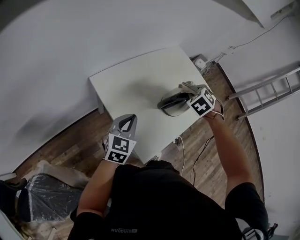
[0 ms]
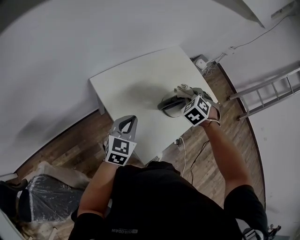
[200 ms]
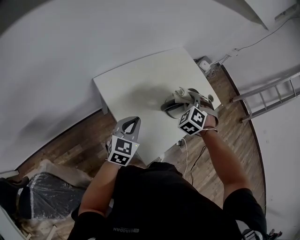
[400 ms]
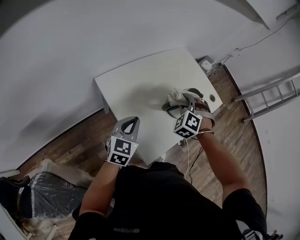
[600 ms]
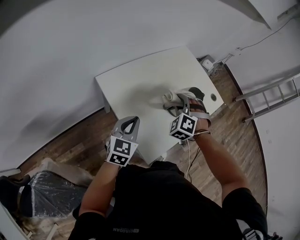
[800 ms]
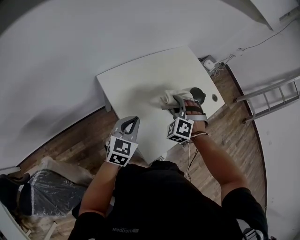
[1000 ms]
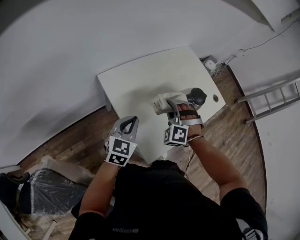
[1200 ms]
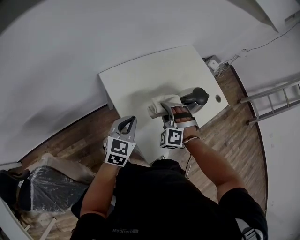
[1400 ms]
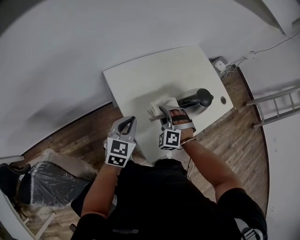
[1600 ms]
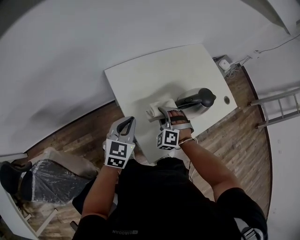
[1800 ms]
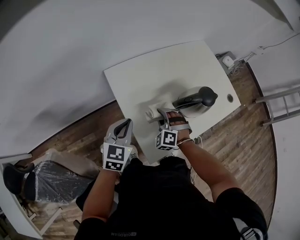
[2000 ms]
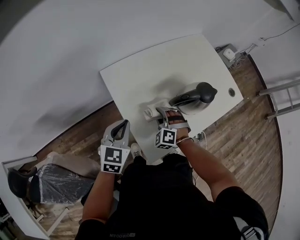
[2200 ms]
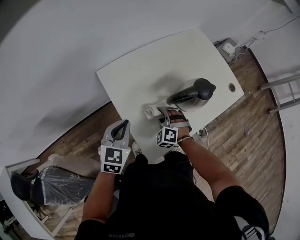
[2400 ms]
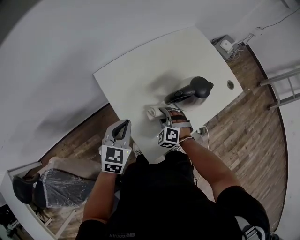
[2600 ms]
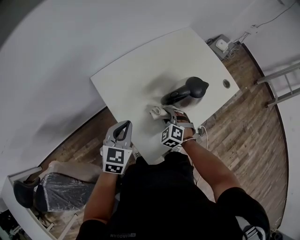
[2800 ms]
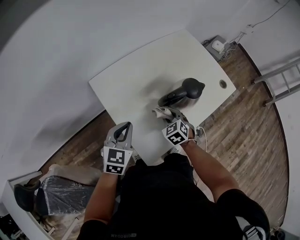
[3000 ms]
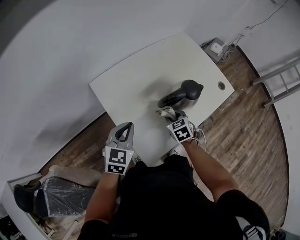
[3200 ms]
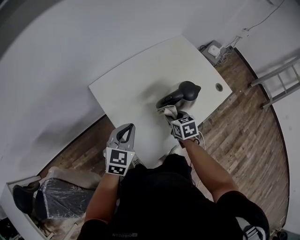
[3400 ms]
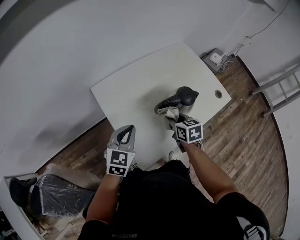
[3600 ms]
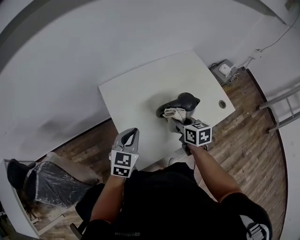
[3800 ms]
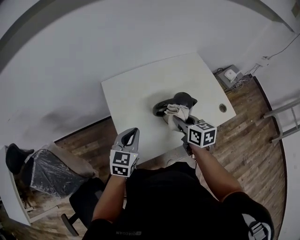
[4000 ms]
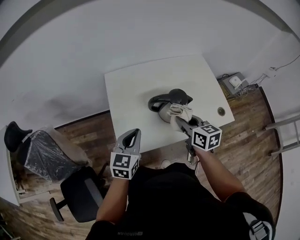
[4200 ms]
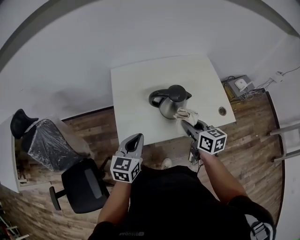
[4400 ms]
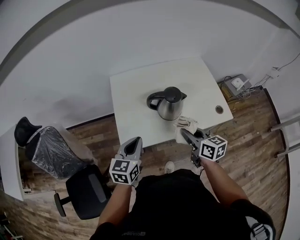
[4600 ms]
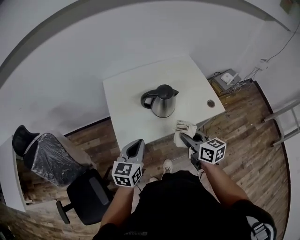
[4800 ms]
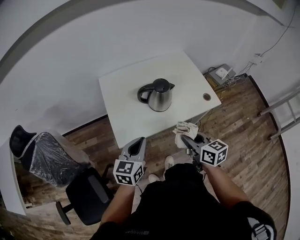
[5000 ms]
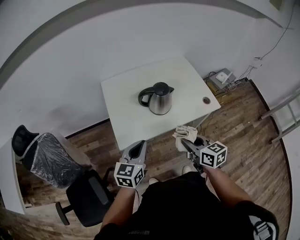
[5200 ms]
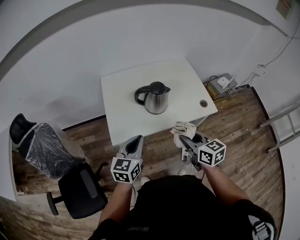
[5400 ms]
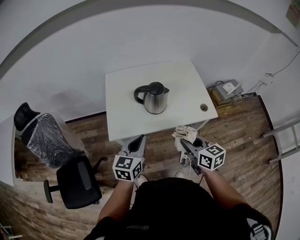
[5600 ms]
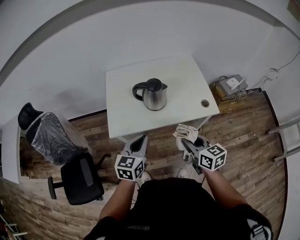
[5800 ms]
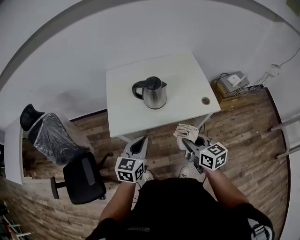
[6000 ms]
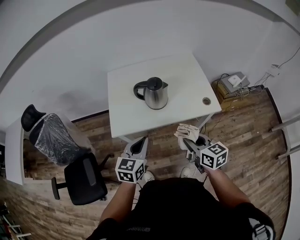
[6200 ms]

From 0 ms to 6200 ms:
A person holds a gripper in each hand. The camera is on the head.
From 0 ms to 1600 ms: The right gripper moves to the left, backward and downward, roughly 25 cm, and changes its angle by about 40 degrees.
From 1600 ms to 3200 ms: The right gripper is displaced to the right and downward by some 15 cm, and twists some 70 degrees clockwise, seen from behind. Meanwhile the left gripper heads to the right, covering about 5 cm.
From 3200 ms to 4600 ms: The right gripper shifts by roughly 25 cm, and angles its fingers upward, by approximately 30 degrees. Meanwhile the left gripper changes place by some 20 cm, and turns by approximately 30 degrees.
From 4600 ms to 6200 ms: The right gripper heads backward and to the right, covering about 15 cm. Meanwhile the left gripper goes roughly 15 cm to the right and backward.

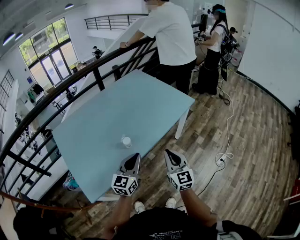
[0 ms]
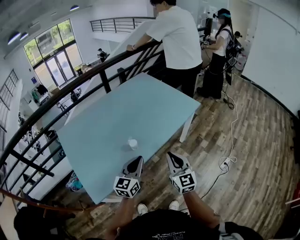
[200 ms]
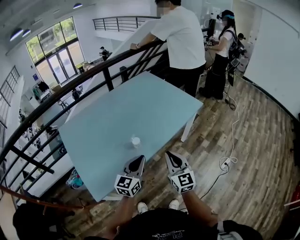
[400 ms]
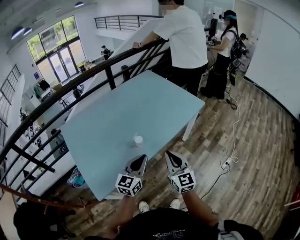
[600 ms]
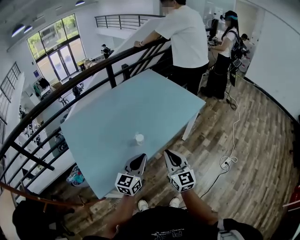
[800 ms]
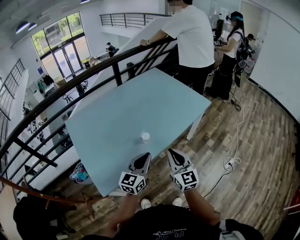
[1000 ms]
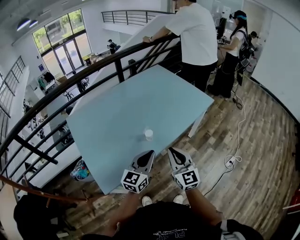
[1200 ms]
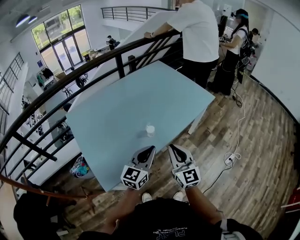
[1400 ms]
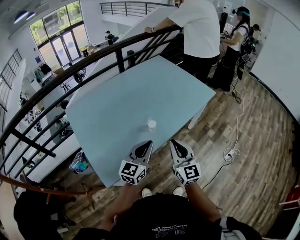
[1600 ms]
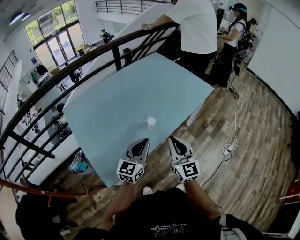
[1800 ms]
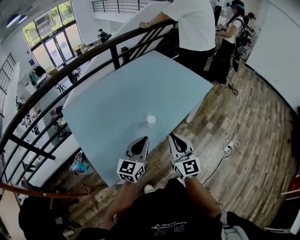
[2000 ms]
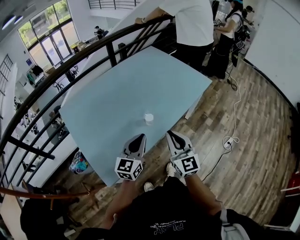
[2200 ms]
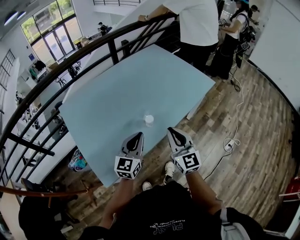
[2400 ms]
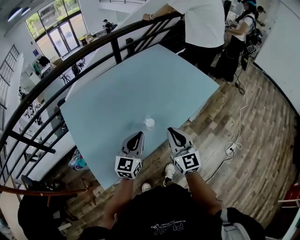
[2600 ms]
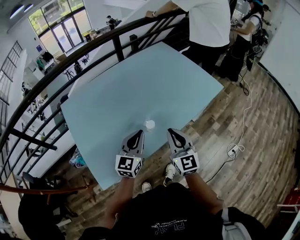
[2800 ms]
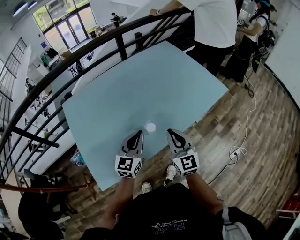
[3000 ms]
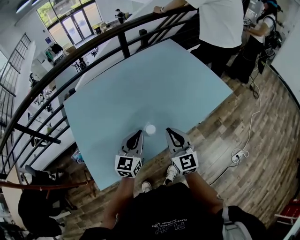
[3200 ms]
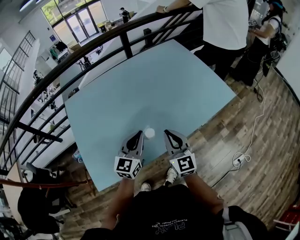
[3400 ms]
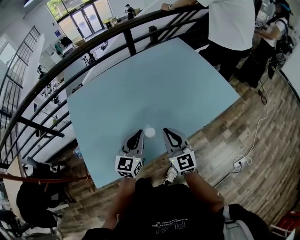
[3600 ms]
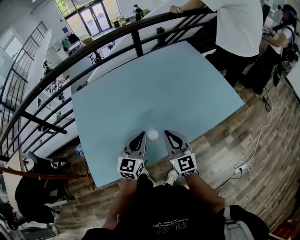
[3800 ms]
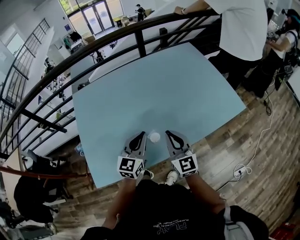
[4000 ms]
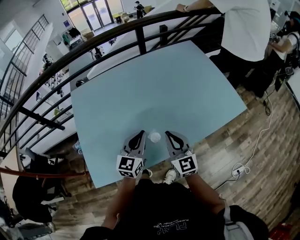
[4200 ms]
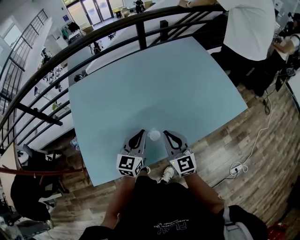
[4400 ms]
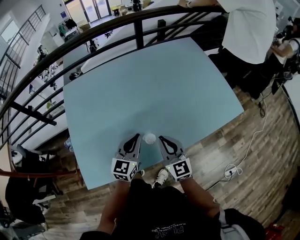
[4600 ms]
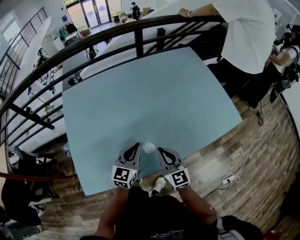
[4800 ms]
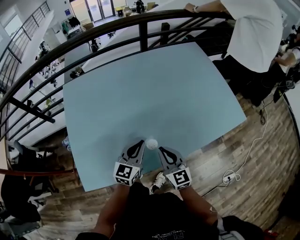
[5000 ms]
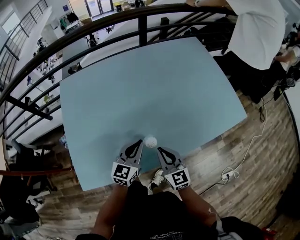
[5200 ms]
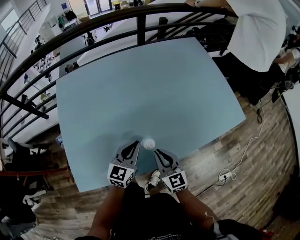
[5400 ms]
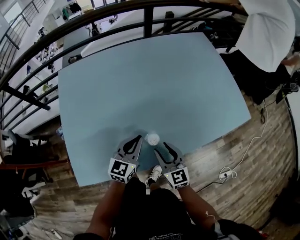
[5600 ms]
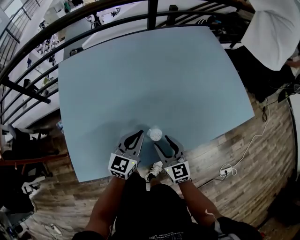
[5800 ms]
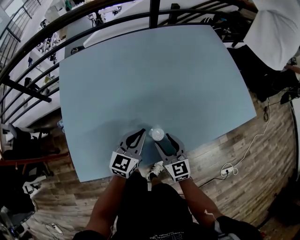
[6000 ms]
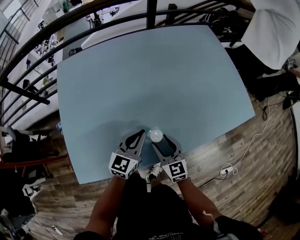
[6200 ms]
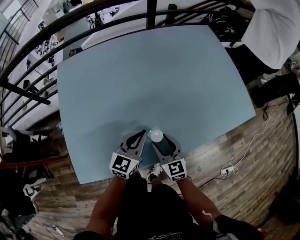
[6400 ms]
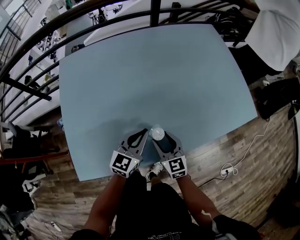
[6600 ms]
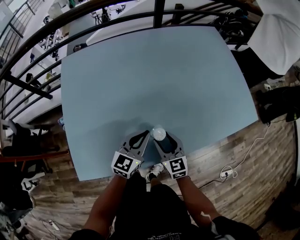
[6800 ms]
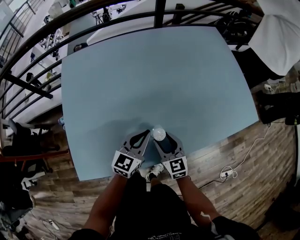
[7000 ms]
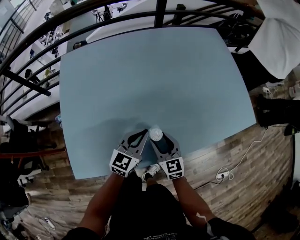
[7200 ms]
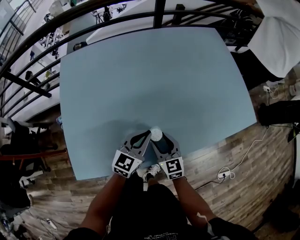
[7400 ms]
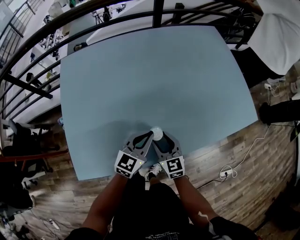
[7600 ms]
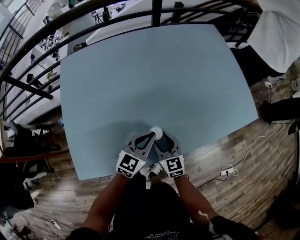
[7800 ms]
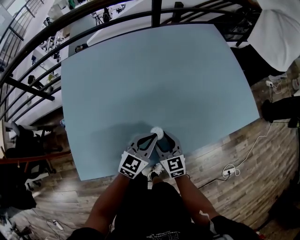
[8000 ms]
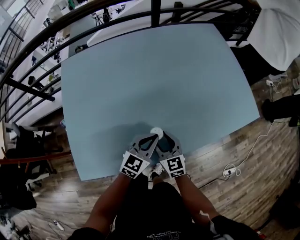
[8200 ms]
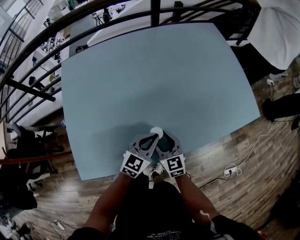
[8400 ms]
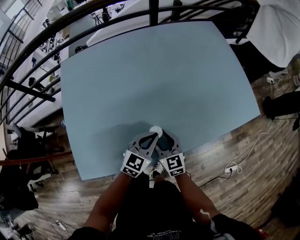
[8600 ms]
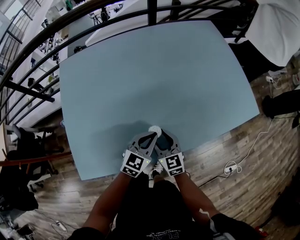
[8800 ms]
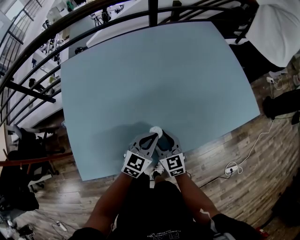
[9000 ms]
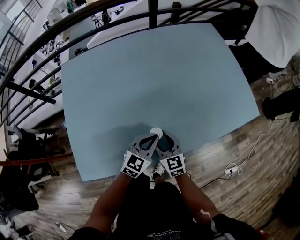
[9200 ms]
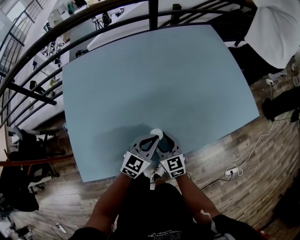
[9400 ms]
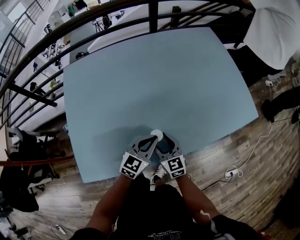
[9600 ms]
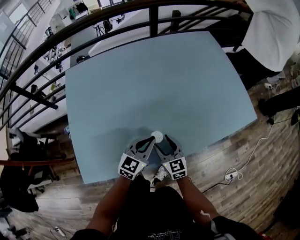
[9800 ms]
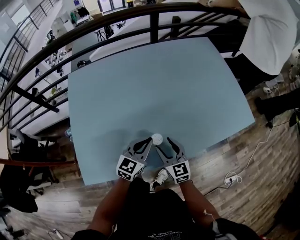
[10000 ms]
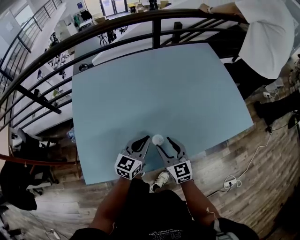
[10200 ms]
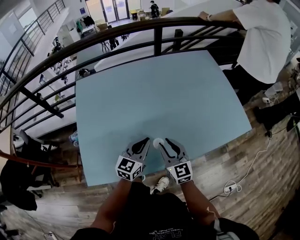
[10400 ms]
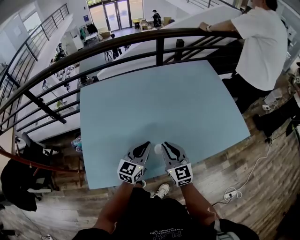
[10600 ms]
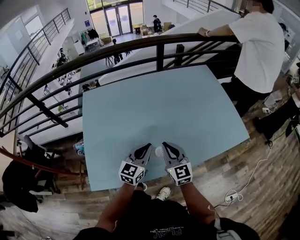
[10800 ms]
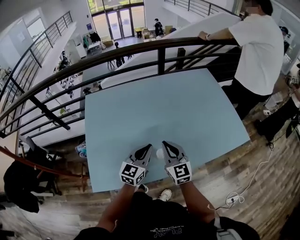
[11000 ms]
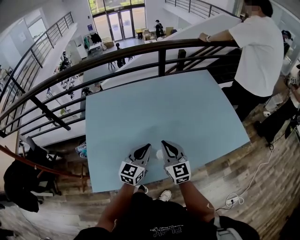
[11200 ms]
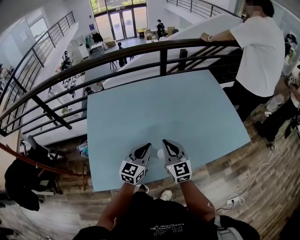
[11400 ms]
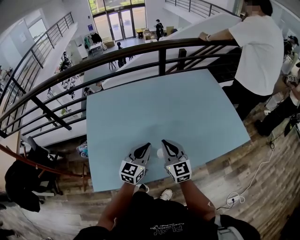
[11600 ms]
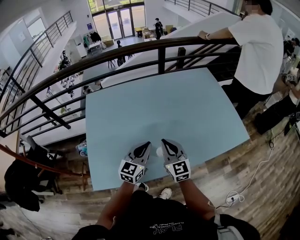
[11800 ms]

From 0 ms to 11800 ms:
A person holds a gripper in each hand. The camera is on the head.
From 0 ms to 1400 ms: The right gripper moves to the left, some 15 cm. Meanwhile the left gripper heads to the left, covering some 10 cm.
From 1400 ms to 3000 ms: The two grippers go approximately 15 cm forward.
From 3000 ms to 4400 ms: Both grippers move forward and downward, approximately 10 cm.
From 4400 ms to 6000 ms: The left gripper heads downward, covering about 10 cm. The right gripper heads downward, covering roughly 15 cm, and opens up.
From 6000 ms to 7400 ms: The grippers make only small movements.
From 7400 ms to 8800 ms: There are only small adjustments of the grippers.
From 8800 ms to 10400 ms: The grippers both shift upward by some 10 cm.
From 10400 ms to 11800 ms: Both grippers travel together upward, roughly 5 cm. The right gripper closes.

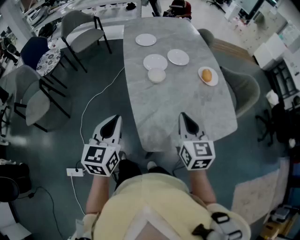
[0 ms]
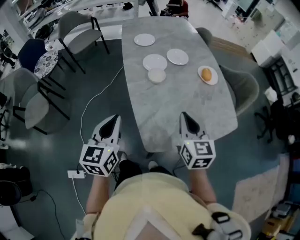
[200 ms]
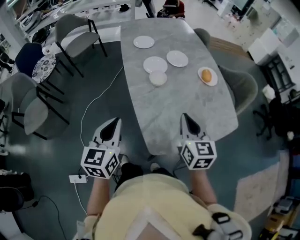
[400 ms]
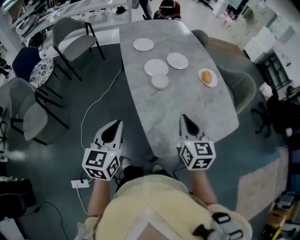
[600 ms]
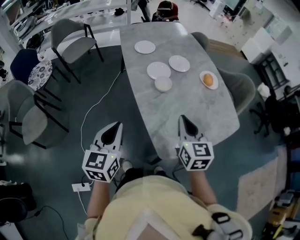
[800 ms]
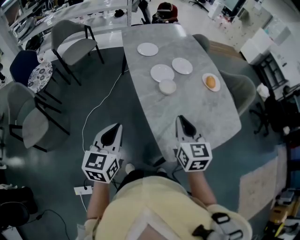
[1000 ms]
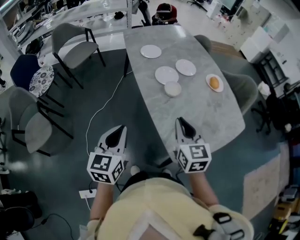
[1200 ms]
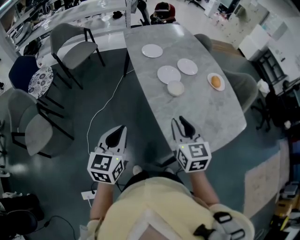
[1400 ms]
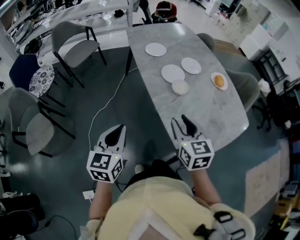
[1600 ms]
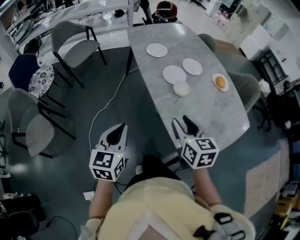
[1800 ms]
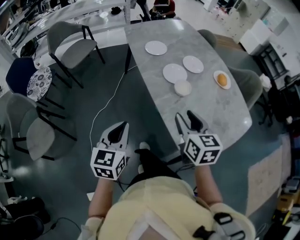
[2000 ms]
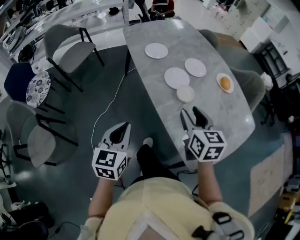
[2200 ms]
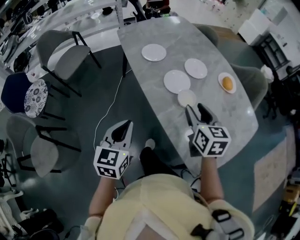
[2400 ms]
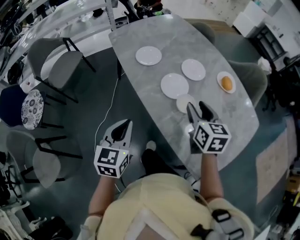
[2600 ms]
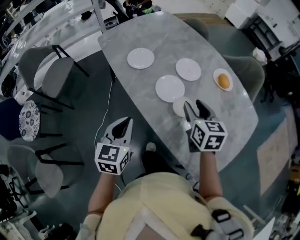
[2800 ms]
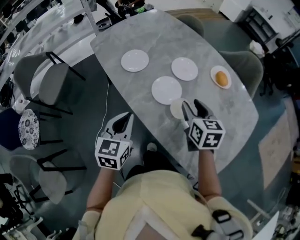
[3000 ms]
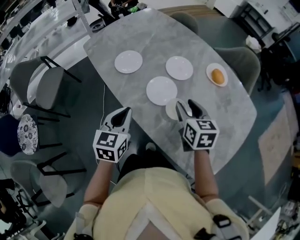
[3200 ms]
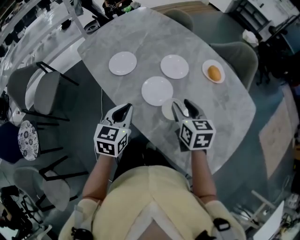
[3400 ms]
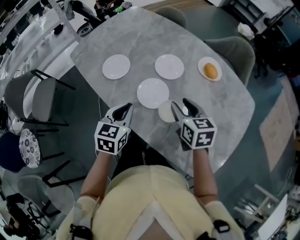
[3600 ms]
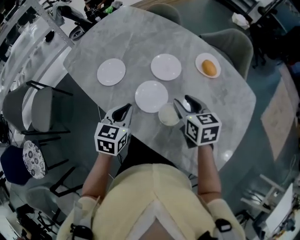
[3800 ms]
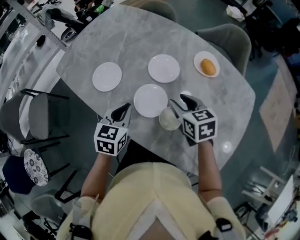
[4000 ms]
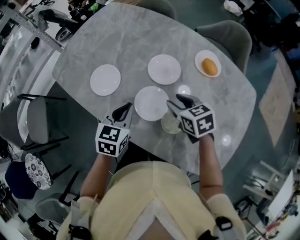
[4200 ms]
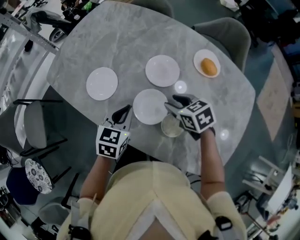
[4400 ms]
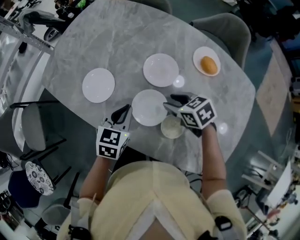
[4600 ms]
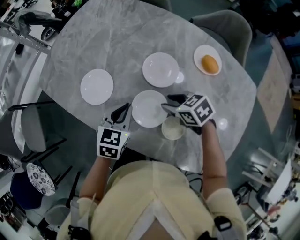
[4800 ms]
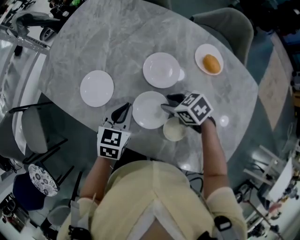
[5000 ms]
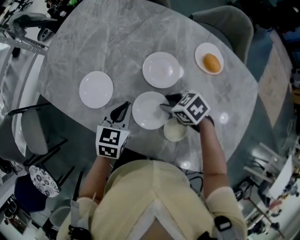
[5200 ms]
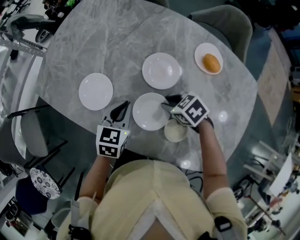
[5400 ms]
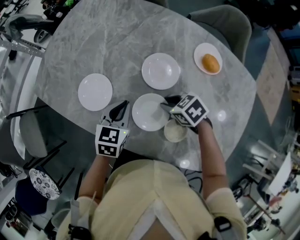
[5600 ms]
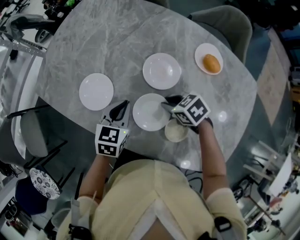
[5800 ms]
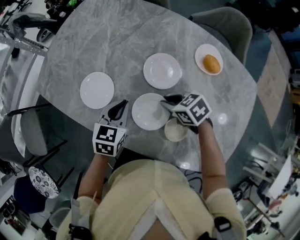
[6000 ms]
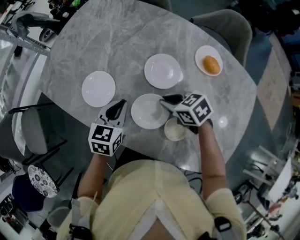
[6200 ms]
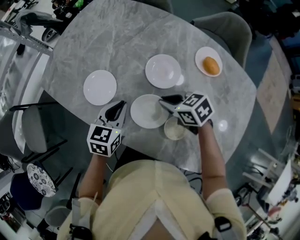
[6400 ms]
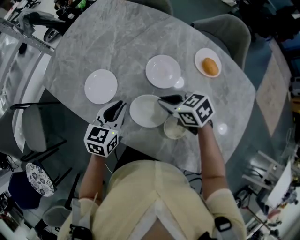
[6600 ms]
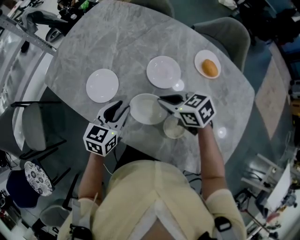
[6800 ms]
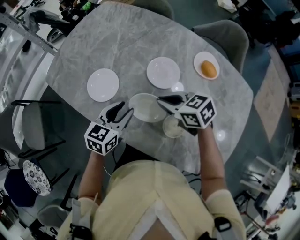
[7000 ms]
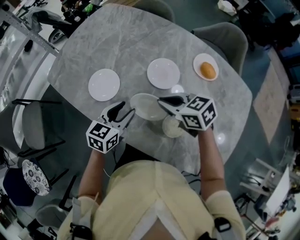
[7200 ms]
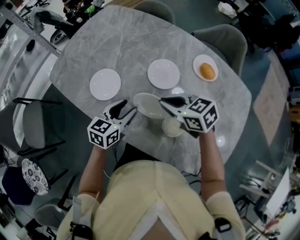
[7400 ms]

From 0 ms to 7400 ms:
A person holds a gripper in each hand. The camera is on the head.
From 0 ms to 1400 ms: The two grippers go some 20 cm to the left.
From 1400 ms to 3000 ms: The two grippers go roughly 30 cm forward. The right gripper swivels some 30 degrees, and opens its fingers, while the left gripper changes its angle by some 20 degrees.
From 3000 ms to 4400 ms: Both grippers move forward and downward, about 20 cm. The right gripper swivels some 20 degrees. The left gripper turns by about 30 degrees.
From 4400 ms to 6000 ms: The right gripper changes place by some 5 cm, and closes up. The left gripper heads forward, covering roughly 5 cm.
From 6000 ms to 7400 ms: The left gripper moves roughly 5 cm, and opens its fingers. The right gripper moves upward, about 10 cm.
